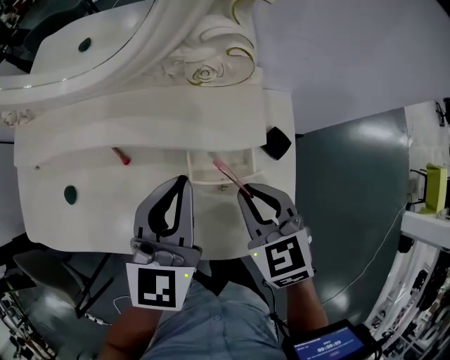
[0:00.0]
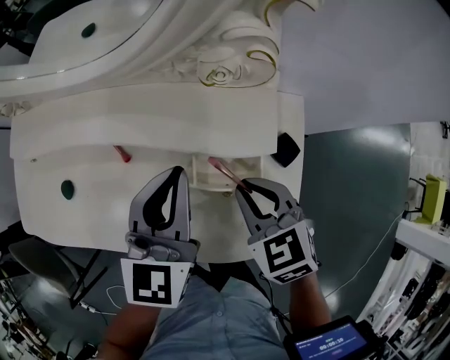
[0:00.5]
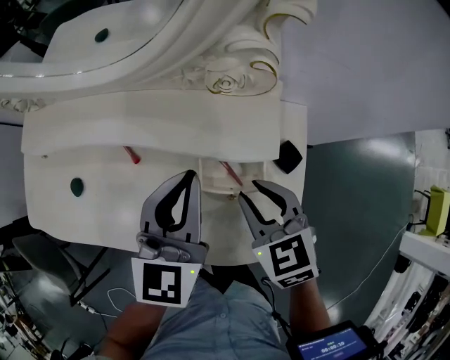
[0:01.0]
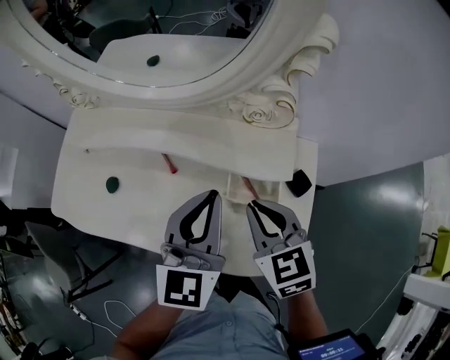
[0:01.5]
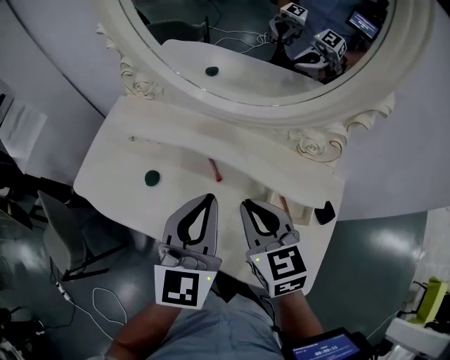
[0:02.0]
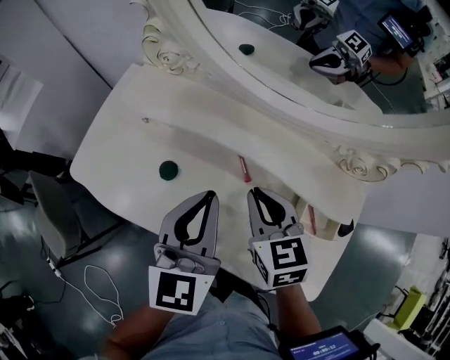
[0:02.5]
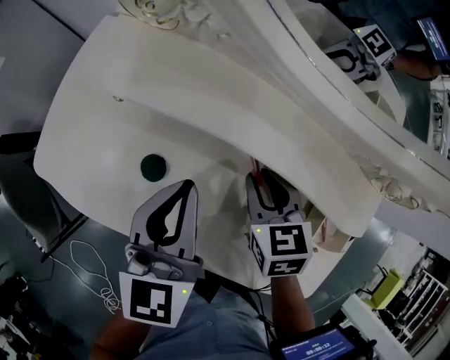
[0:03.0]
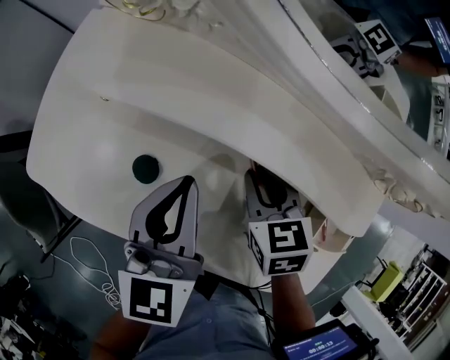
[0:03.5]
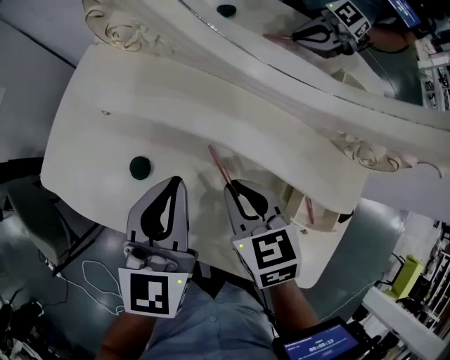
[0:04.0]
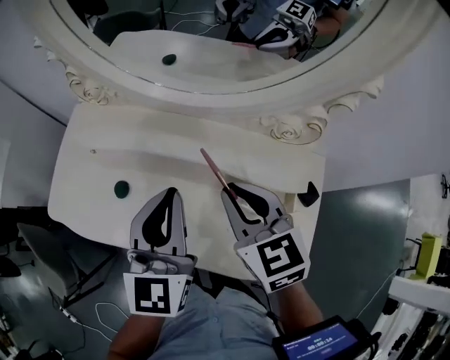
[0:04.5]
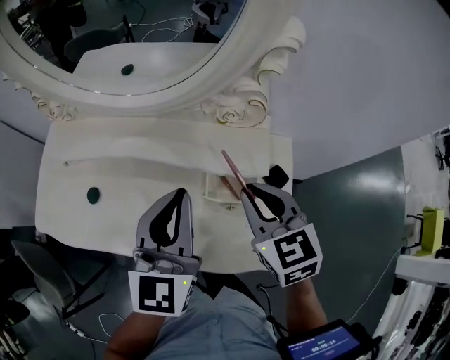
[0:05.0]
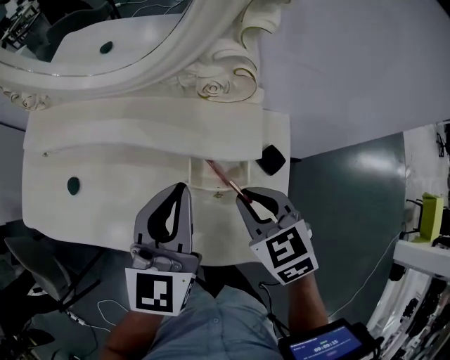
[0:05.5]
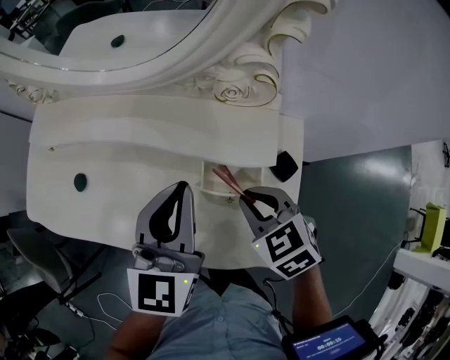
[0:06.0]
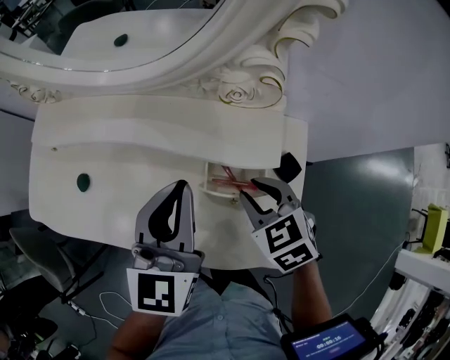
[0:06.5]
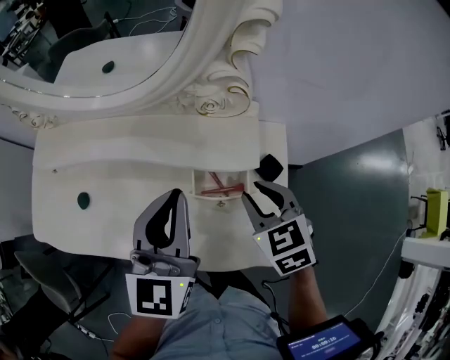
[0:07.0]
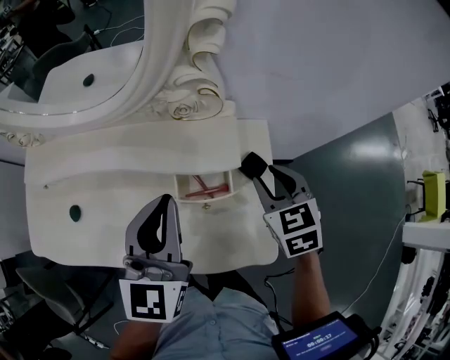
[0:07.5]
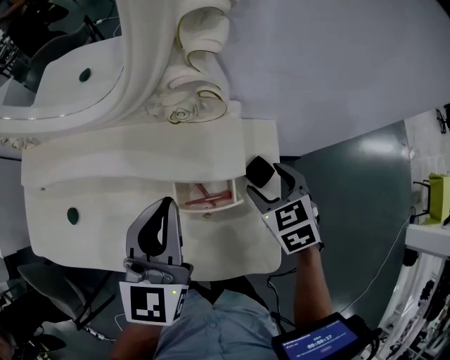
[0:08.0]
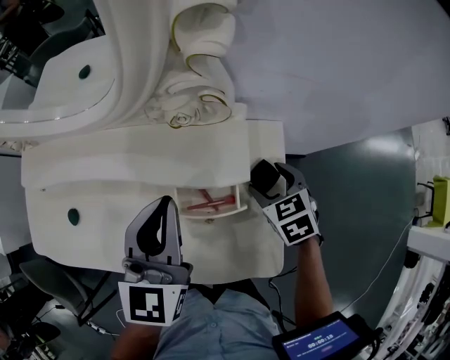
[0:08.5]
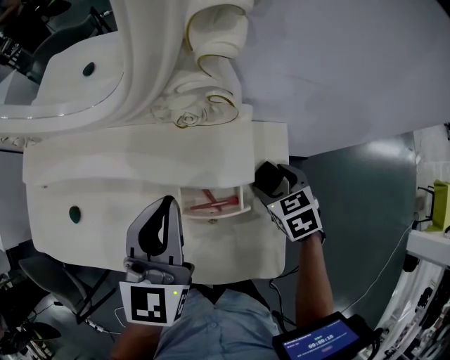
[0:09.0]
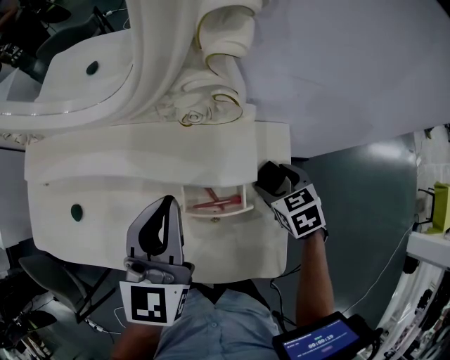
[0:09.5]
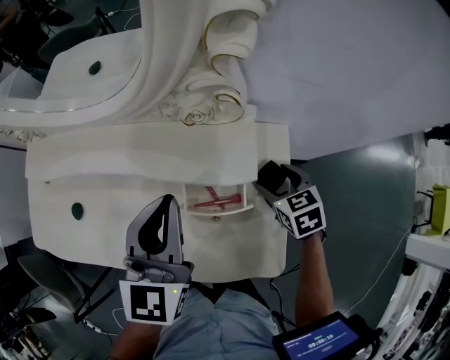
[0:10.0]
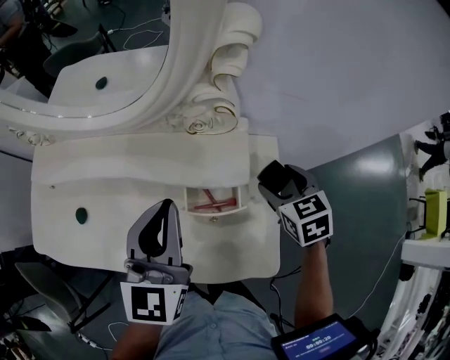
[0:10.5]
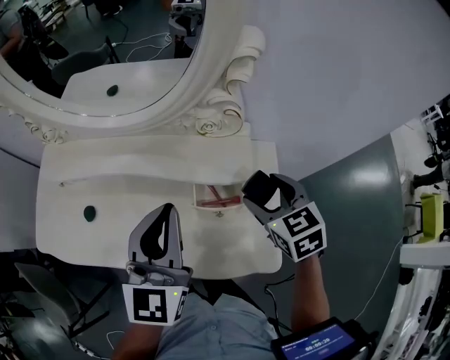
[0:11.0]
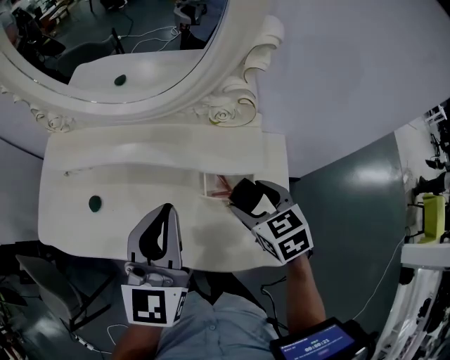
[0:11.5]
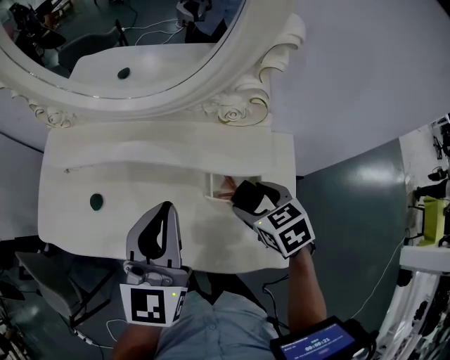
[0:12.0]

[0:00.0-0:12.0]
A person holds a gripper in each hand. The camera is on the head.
0.0 to 2.0 s: The two grippers go some 15 cm to the left and upward. The left gripper swivels about 30 degrees. Meanwhile the right gripper rotates roughly 20 degrees.
2.0 to 4.0 s: The right gripper travels downward, to the left and forward by about 15 cm. The left gripper is displaced to the left, downward and forward by roughly 15 cm.
4.0 to 6.0 s: The right gripper heads to the right and backward, covering approximately 25 cm. Meanwhile the left gripper moves to the right, some 20 cm.
6.0 to 8.0 s: The right gripper moves to the right, roughly 10 cm, swivels about 20 degrees, and opens up.
8.0 to 10.0 s: The right gripper heads downward, covering roughly 5 cm.
10.0 to 12.0 s: The right gripper goes about 15 cm to the left and upward. Meanwhile the left gripper shifts some 10 cm to the left.

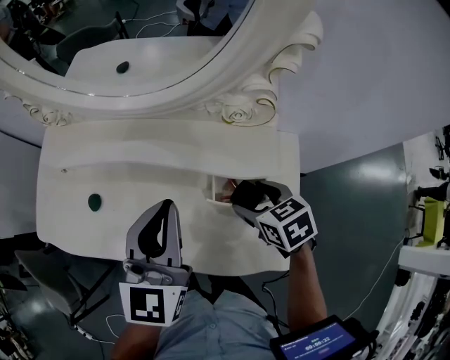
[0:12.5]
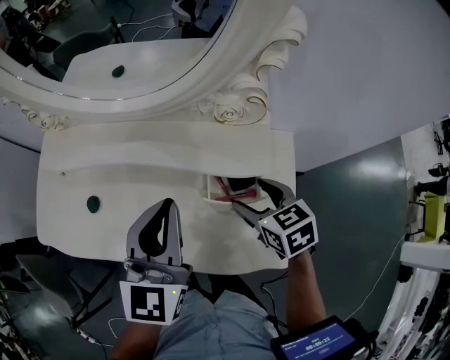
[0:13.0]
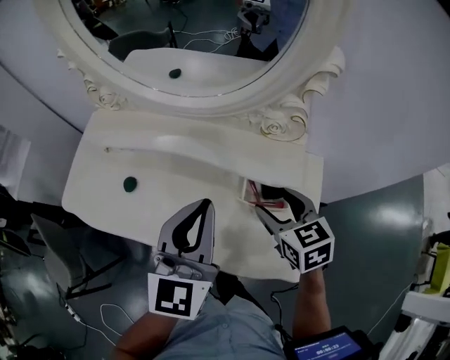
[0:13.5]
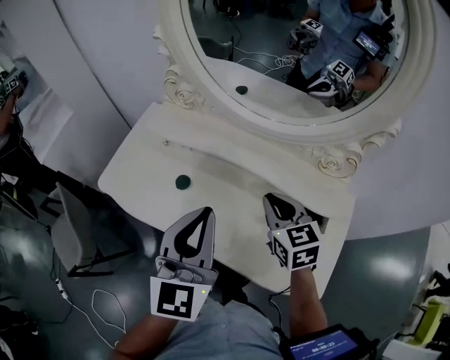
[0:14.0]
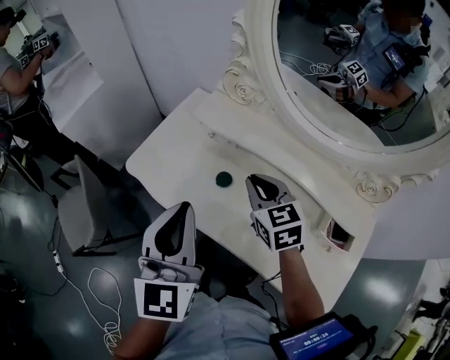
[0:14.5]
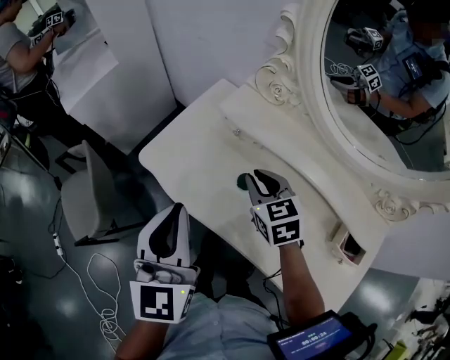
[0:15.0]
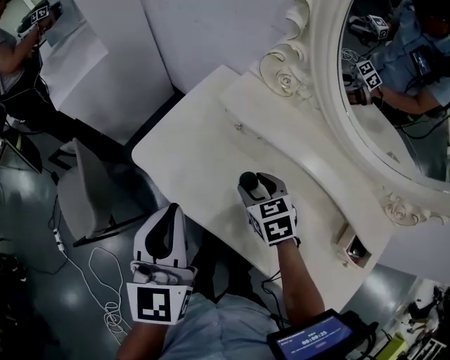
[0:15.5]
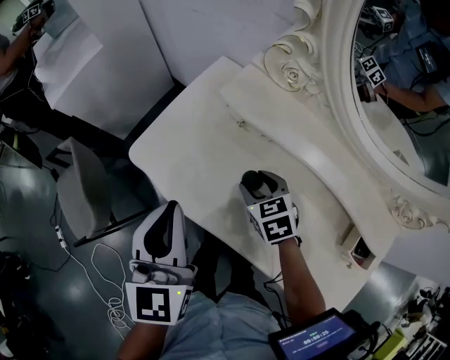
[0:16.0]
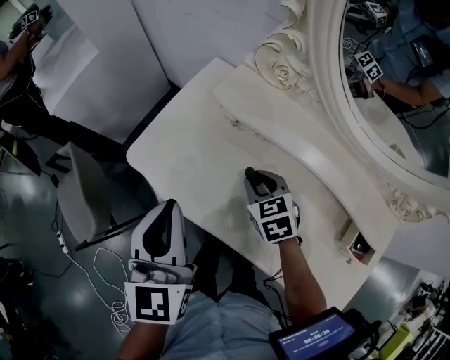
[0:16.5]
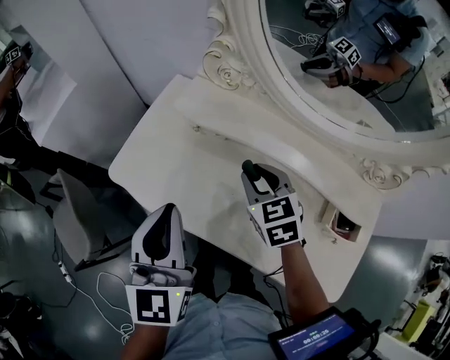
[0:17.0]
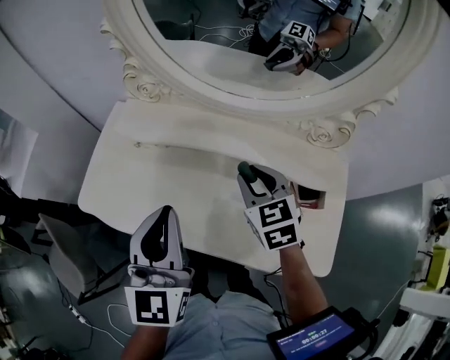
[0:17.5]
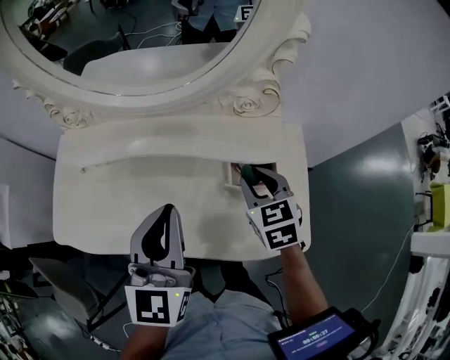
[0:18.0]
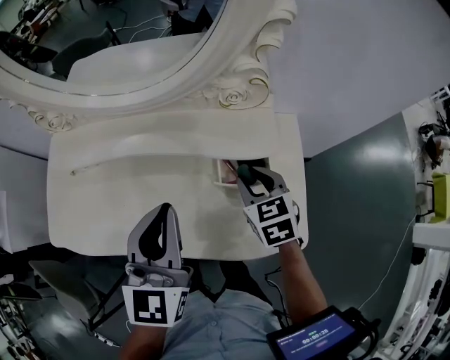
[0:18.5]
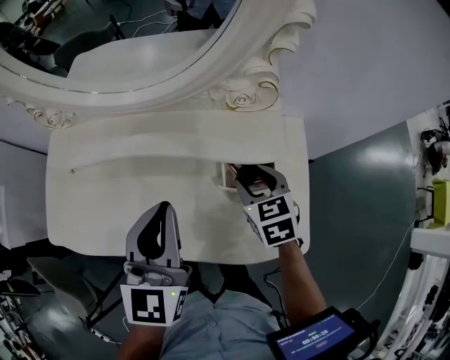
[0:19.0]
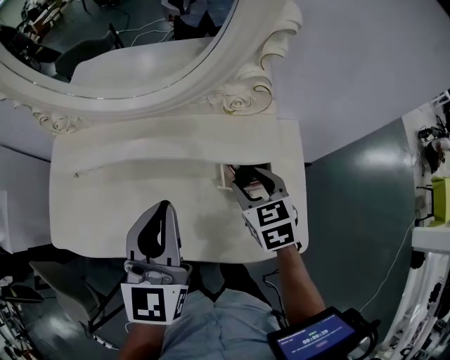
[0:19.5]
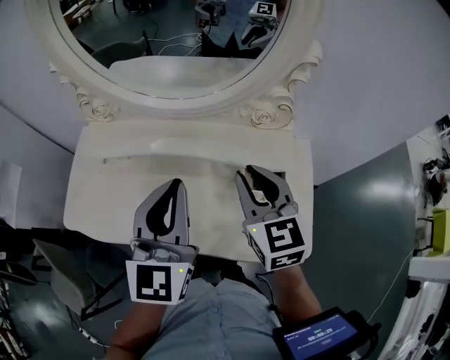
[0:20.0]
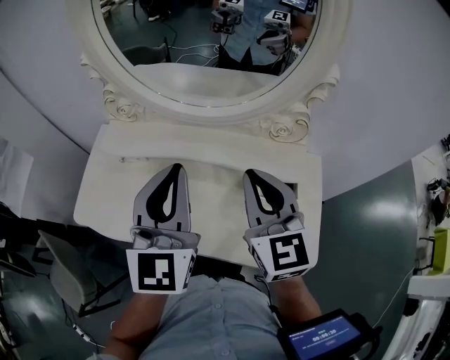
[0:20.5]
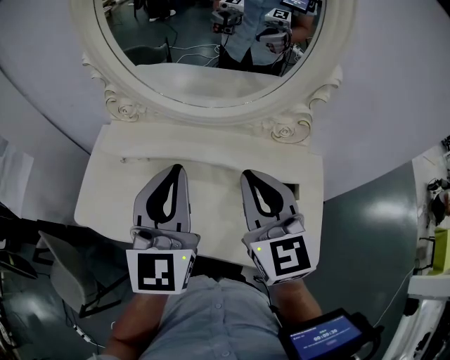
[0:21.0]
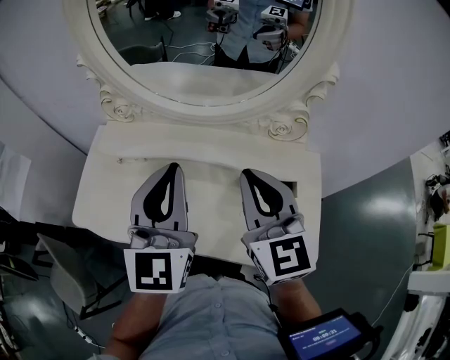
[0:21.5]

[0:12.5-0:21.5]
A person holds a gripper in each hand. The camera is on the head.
12.5 to 14.5 s: The right gripper changes place by about 35 cm, rotates some 30 degrees, and closes. Meanwhile the left gripper shifts by approximately 30 cm, and swivels about 30 degrees.
14.5 to 17.0 s: The right gripper travels downward and back again, approximately 15 cm each way.
17.0 to 19.5 s: The right gripper ends up some 35 cm from where it was, and swivels roughly 30 degrees, while the left gripper changes place by roughly 30 cm, and turns by some 30 degrees.
19.5 to 21.5 s: The left gripper heads upward and to the left, covering about 10 cm, while the right gripper moves upward and to the left, approximately 25 cm, points its fingers about 30 degrees further upward, and closes up.

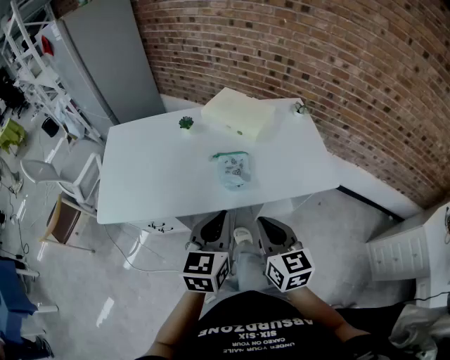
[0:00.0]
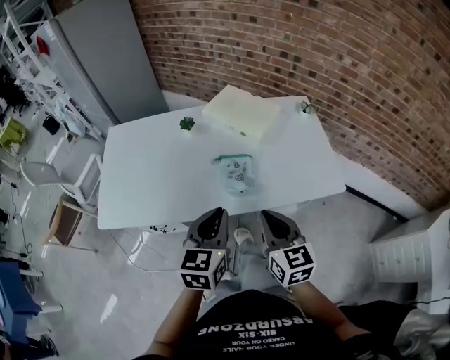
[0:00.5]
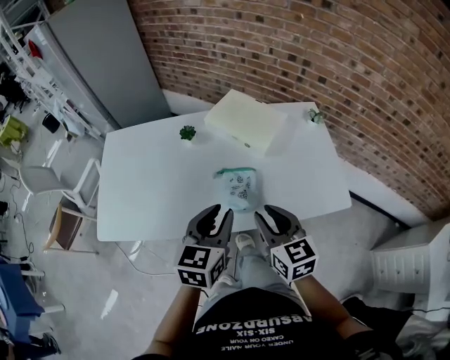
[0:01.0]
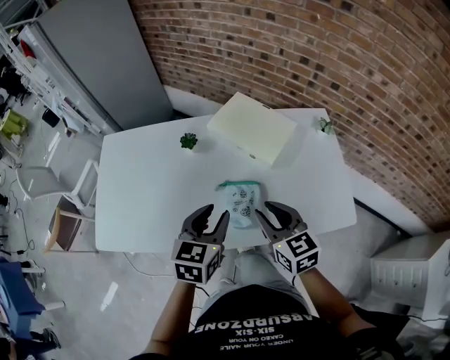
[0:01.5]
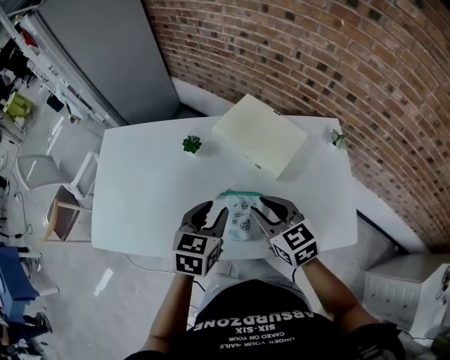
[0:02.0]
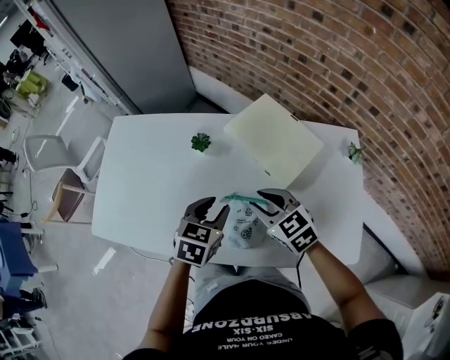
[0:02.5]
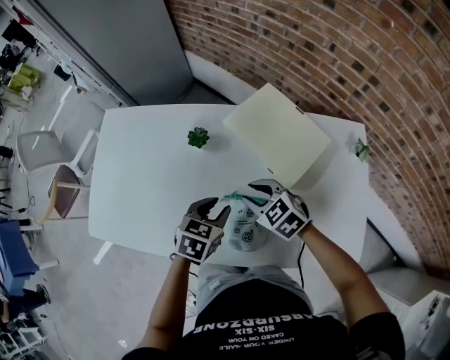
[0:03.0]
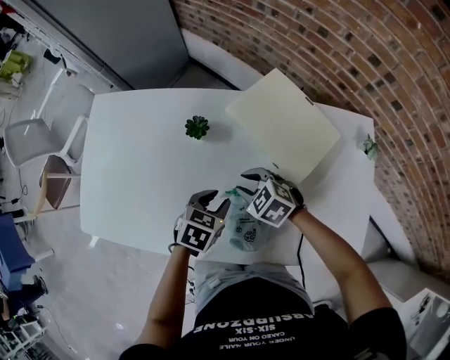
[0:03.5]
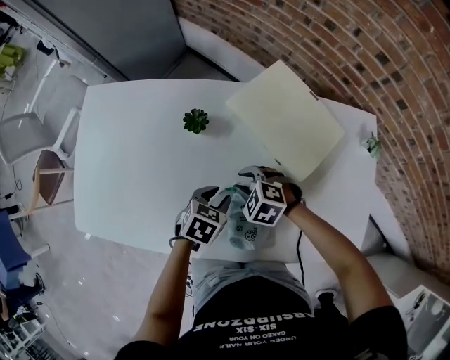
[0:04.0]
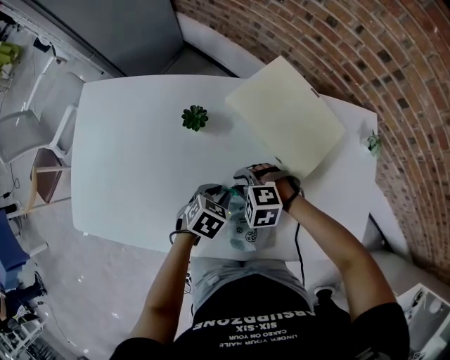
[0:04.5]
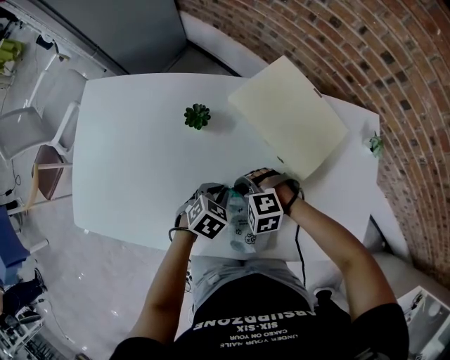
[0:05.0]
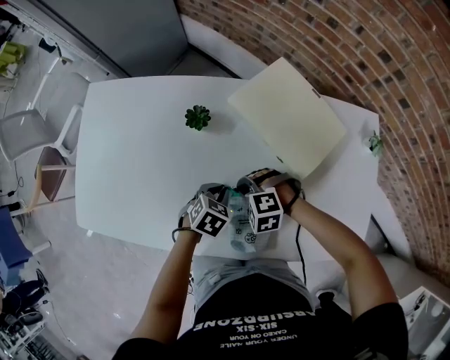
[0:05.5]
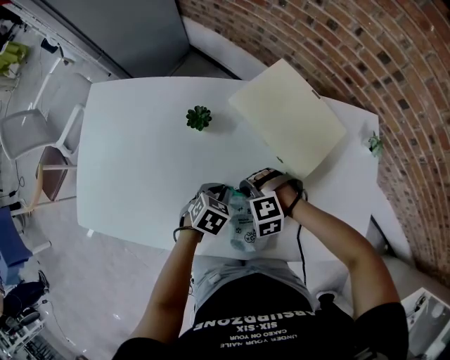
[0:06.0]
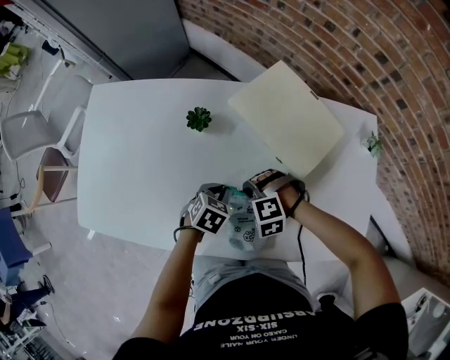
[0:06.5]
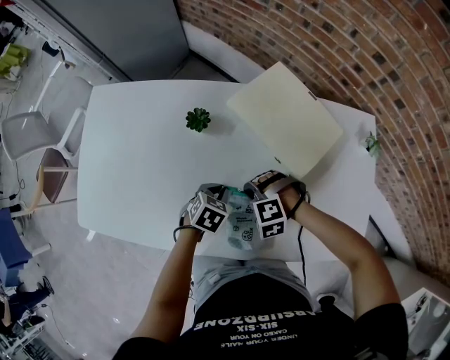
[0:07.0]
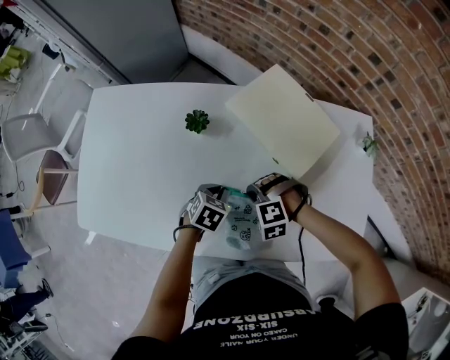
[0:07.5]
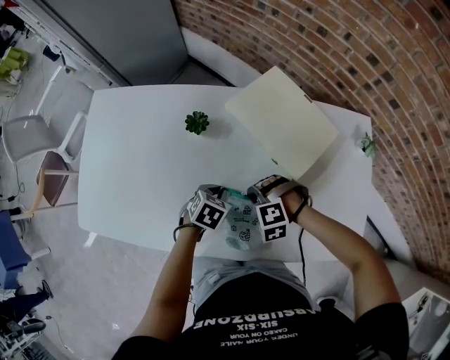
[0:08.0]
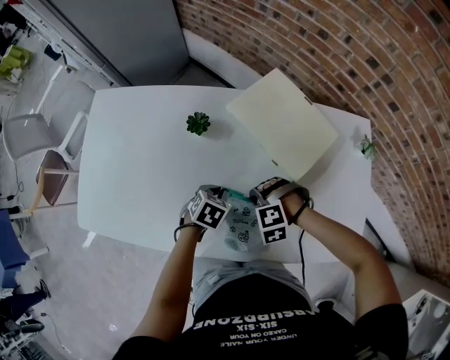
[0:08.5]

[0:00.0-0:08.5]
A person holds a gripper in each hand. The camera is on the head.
0.0 to 2.0 s: Both grippers travel together forward, approximately 30 cm. The right gripper rotates some 30 degrees, and opens up. Meanwhile the left gripper opens.
2.0 to 4.0 s: The left gripper heads downward, covering some 20 cm, and swivels some 30 degrees, while the right gripper heads downward and forward, covering some 25 cm, and points its fingers approximately 30 degrees further downward.
4.0 to 6.5 s: The right gripper turns by some 40 degrees, and closes up; the left gripper closes its fingers.
6.5 to 8.5 s: There are only small adjustments of the grippers.
